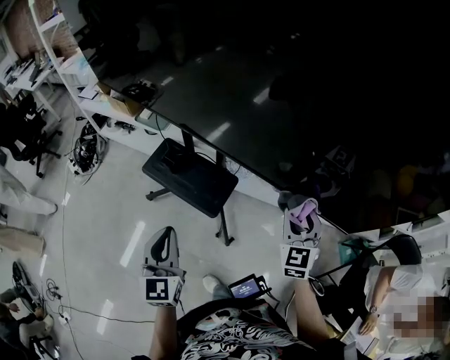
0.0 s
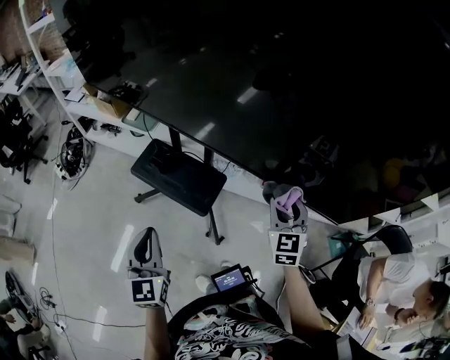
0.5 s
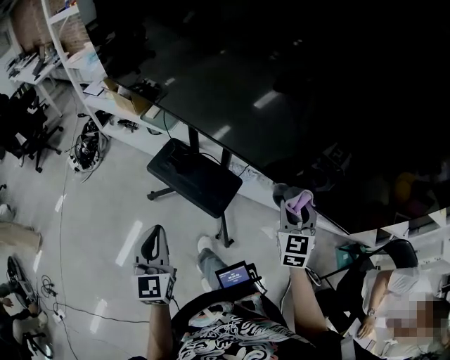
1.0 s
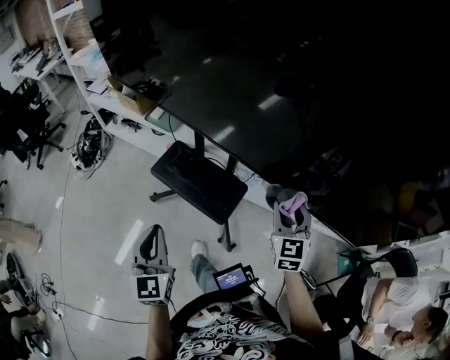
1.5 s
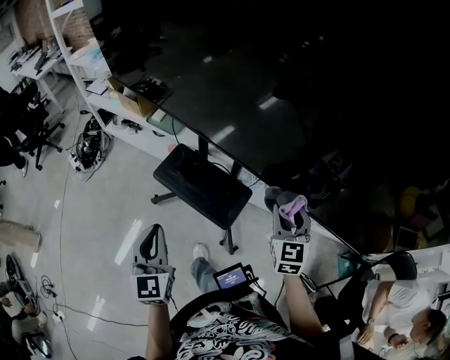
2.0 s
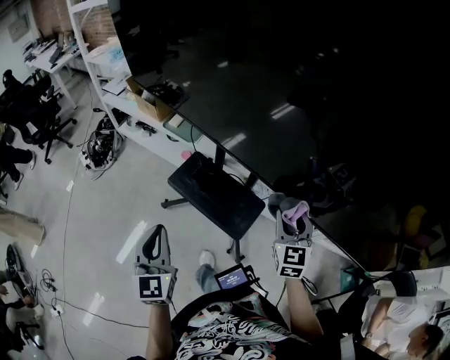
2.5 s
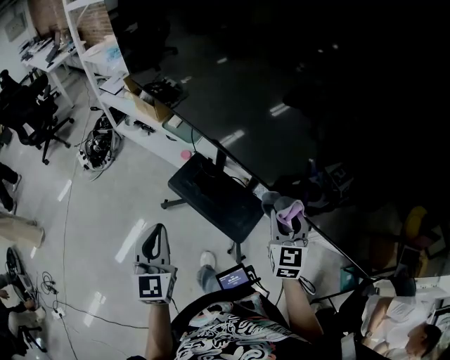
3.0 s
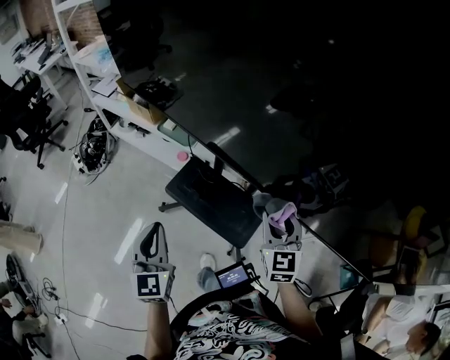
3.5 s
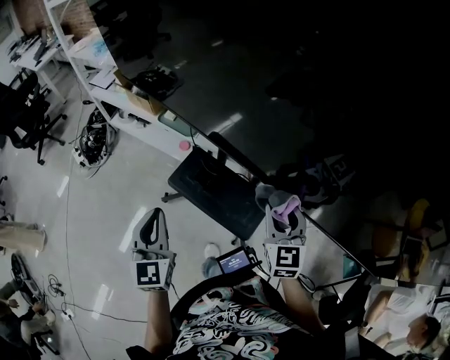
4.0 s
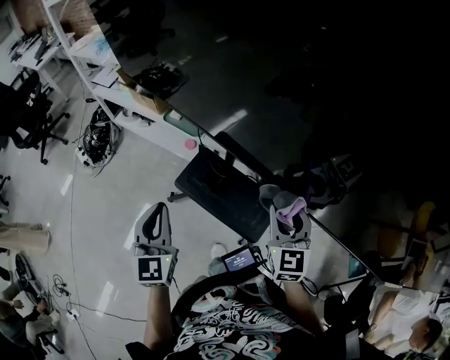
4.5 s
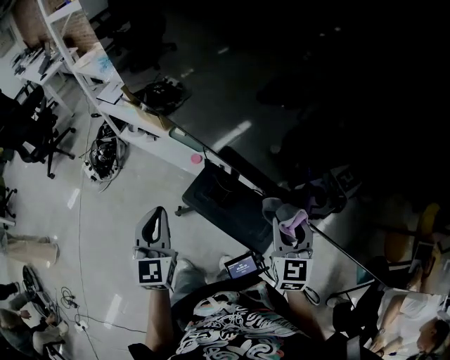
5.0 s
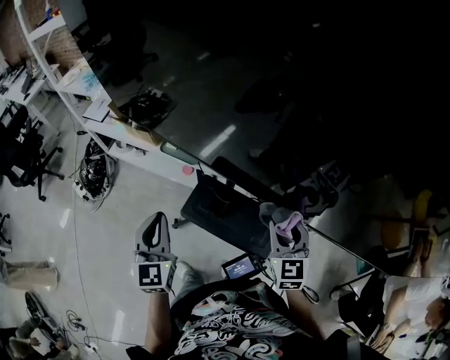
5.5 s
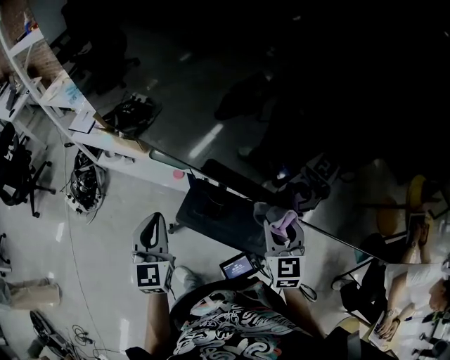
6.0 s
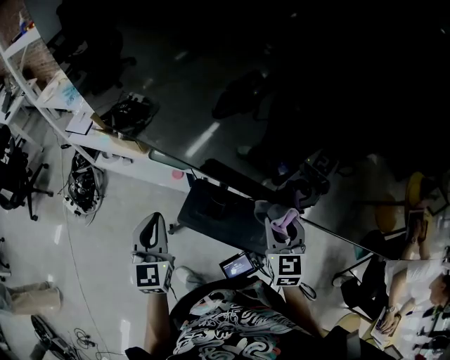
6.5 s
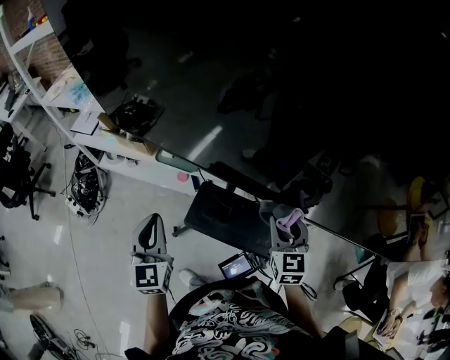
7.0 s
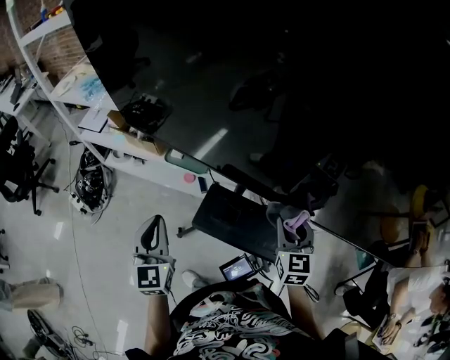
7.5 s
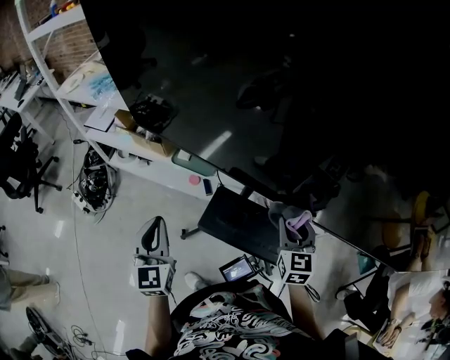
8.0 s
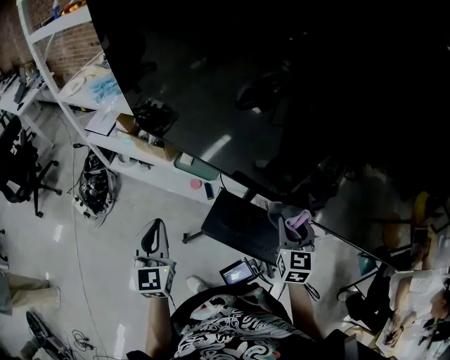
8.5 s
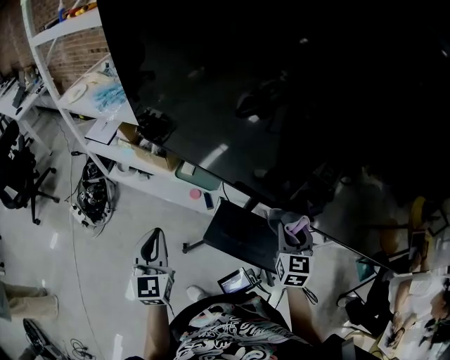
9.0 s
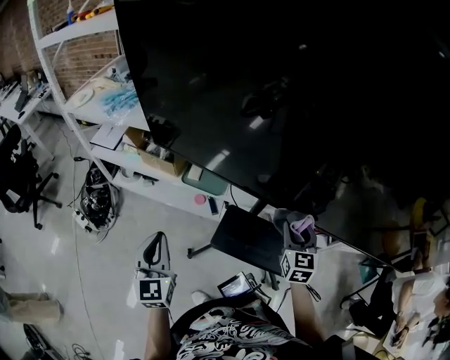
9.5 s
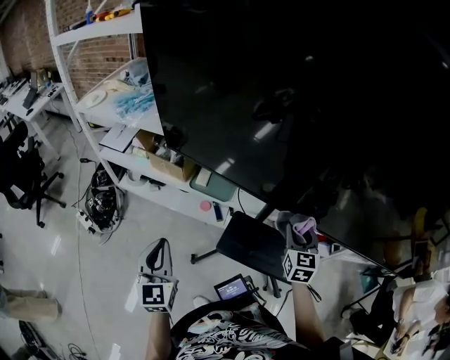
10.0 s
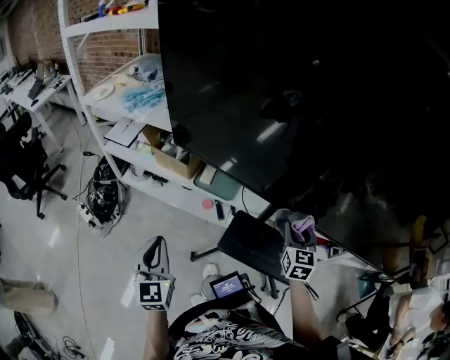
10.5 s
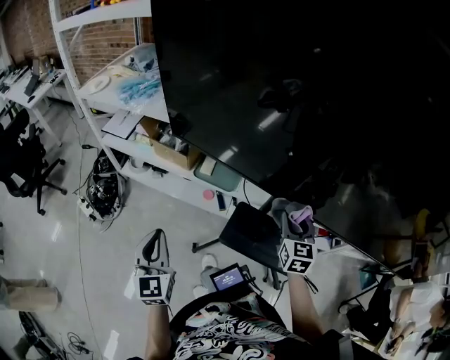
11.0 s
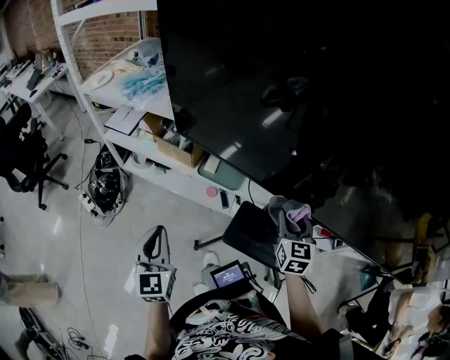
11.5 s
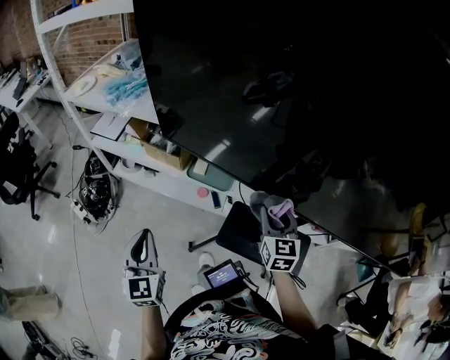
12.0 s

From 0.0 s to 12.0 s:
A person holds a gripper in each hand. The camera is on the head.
From 0.0 s to 2.0 s: The grippers both shift to the left and forward by about 15 cm.
From 2.0 s to 4.0 s: The right gripper moves to the left and forward, roughly 15 cm; the left gripper heads forward and to the left, covering about 15 cm.
From 4.0 s to 6.0 s: The left gripper is displaced forward and to the left by about 15 cm; the right gripper moves to the left, approximately 5 cm.
From 6.0 s to 8.0 s: The left gripper moves to the left, some 15 cm, while the right gripper heads to the left, covering approximately 10 cm.
From 8.0 s to 10.0 s: The left gripper moves to the left, roughly 10 cm. The right gripper moves to the left, roughly 5 cm.
From 10.0 s to 12.0 s: The right gripper shifts about 10 cm to the left and forward. The left gripper moves to the left, about 5 cm.

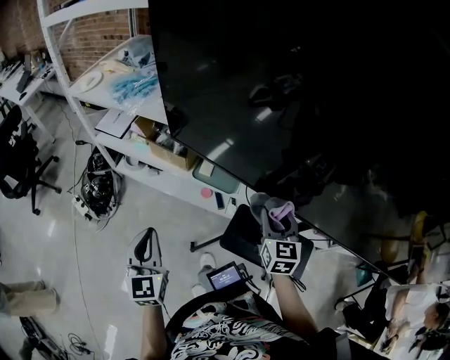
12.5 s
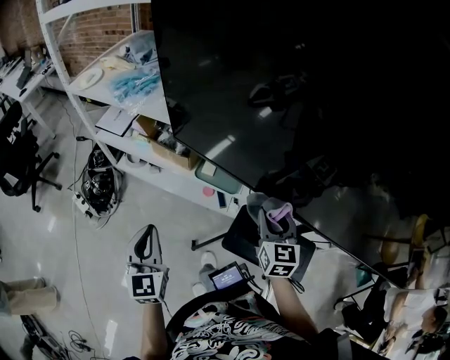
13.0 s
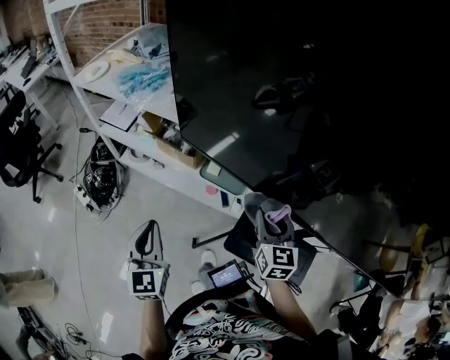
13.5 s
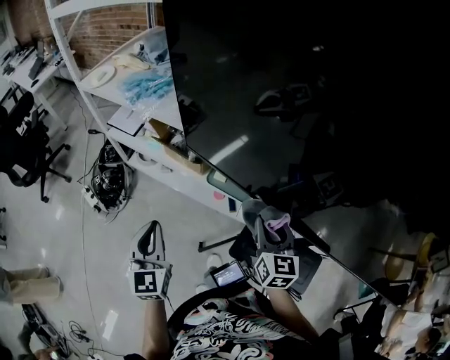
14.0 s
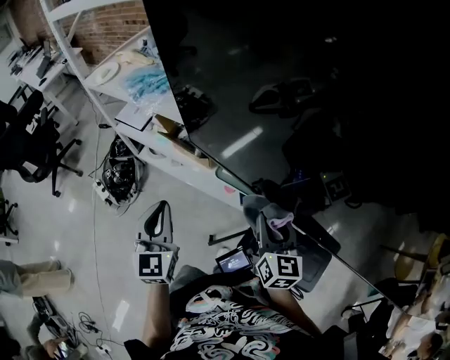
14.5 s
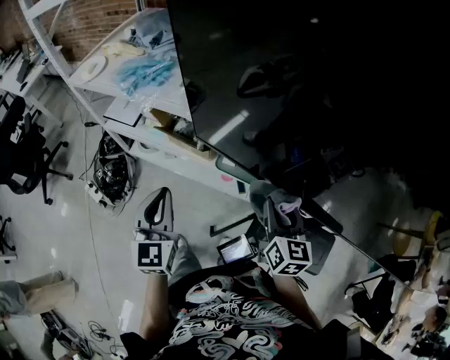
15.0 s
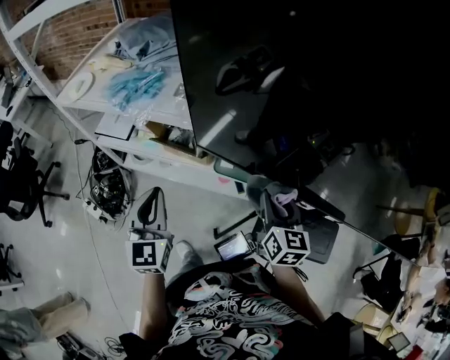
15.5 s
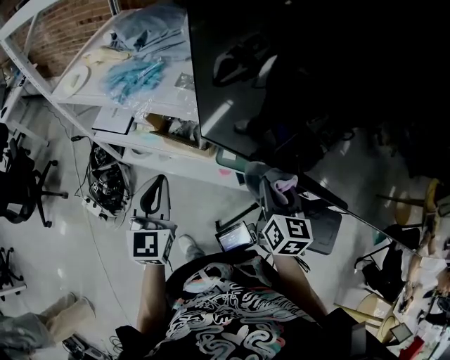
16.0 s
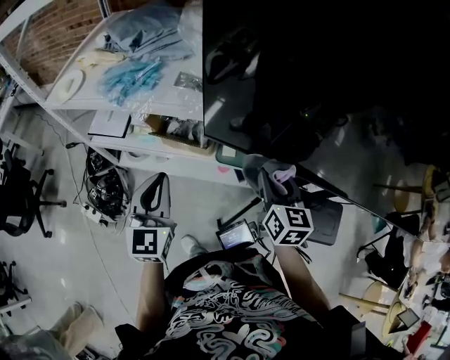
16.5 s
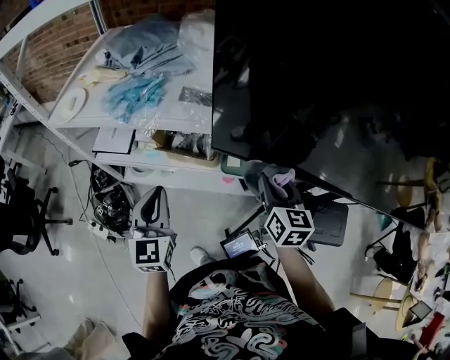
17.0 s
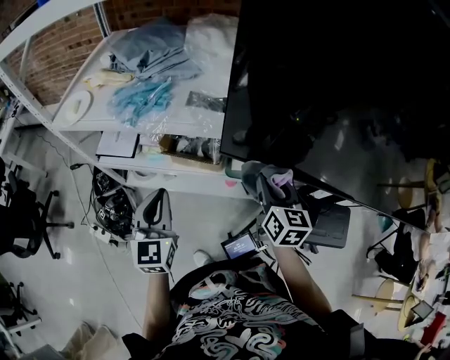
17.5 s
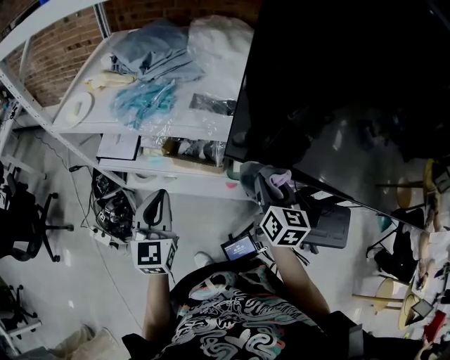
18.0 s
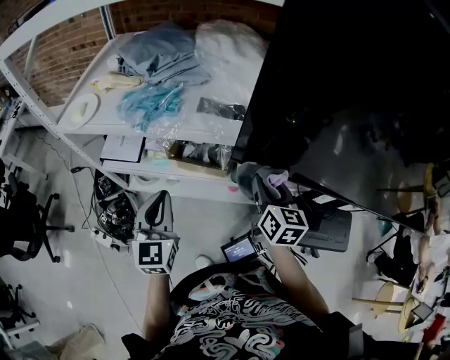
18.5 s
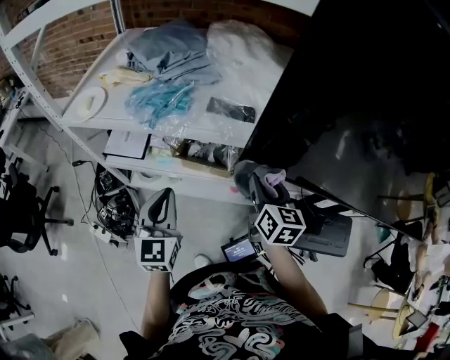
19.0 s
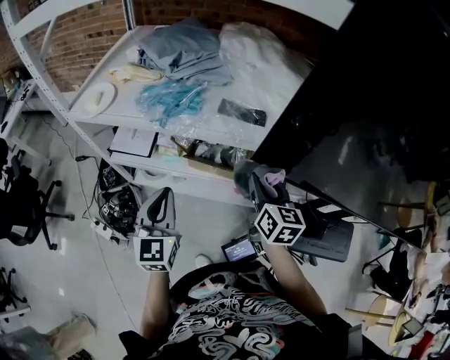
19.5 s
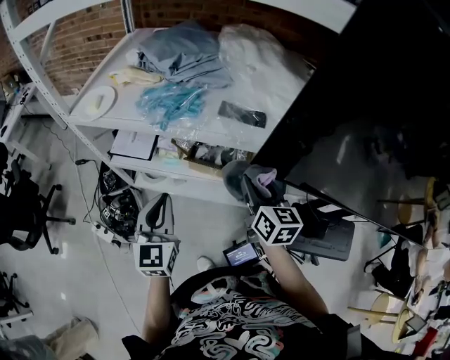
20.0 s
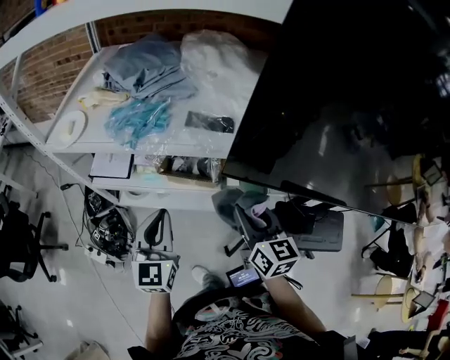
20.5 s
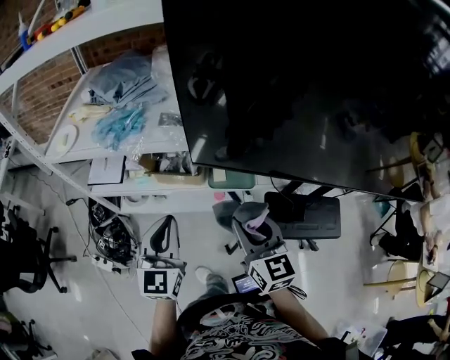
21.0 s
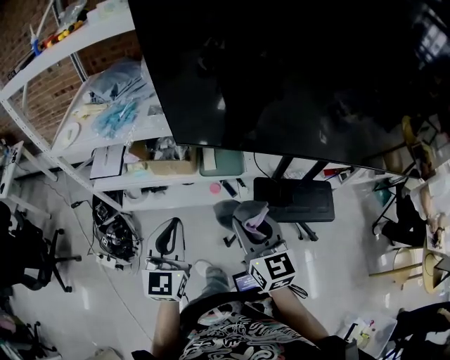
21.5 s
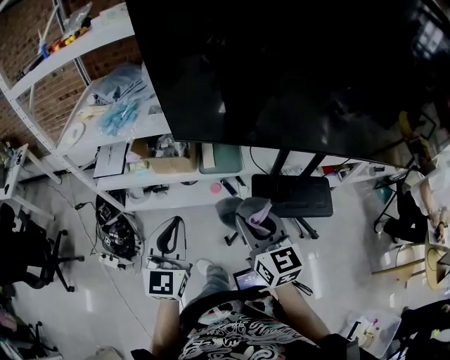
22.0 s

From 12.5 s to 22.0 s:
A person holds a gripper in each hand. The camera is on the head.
From 12.5 s to 14.5 s: The left gripper goes roughly 10 cm forward, while the right gripper moves to the left and forward, roughly 10 cm.
From 14.5 s to 16.5 s: The two grippers go about 15 cm to the left and forward. The left gripper turns by some 20 degrees.
From 16.5 s to 18.0 s: Both grippers travel together to the left, roughly 5 cm.
From 18.0 s to 20.0 s: The right gripper travels to the left by roughly 10 cm. The left gripper moves to the left, roughly 5 cm.
From 20.0 s to 22.0 s: Both grippers move backward and to the right, some 35 cm. The left gripper rotates about 20 degrees.

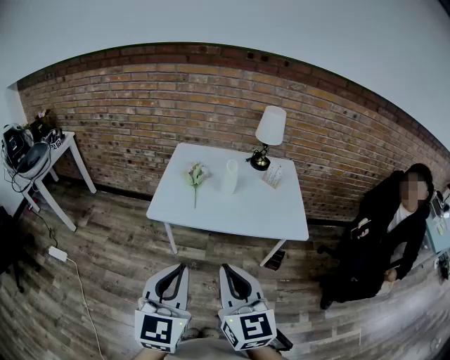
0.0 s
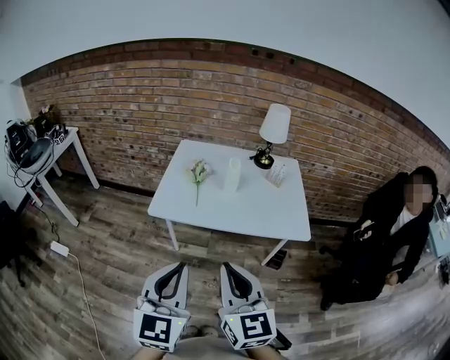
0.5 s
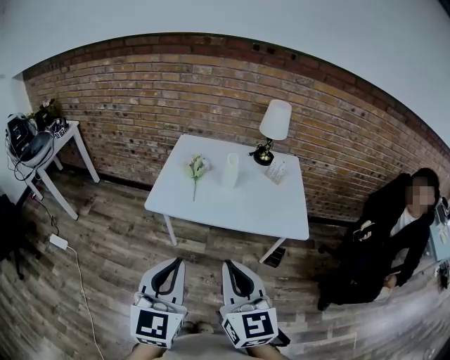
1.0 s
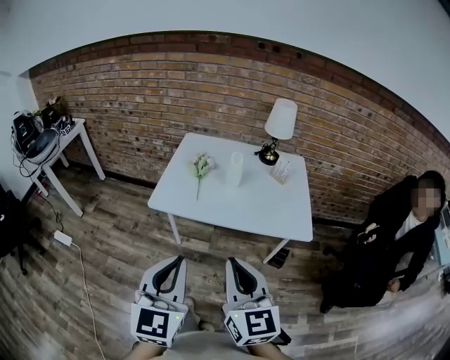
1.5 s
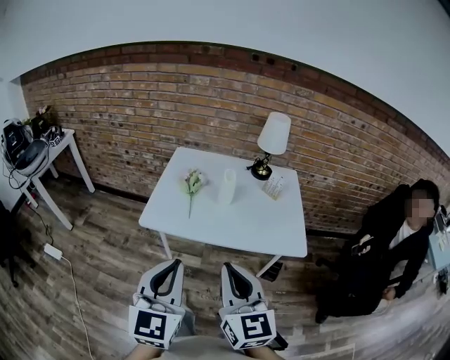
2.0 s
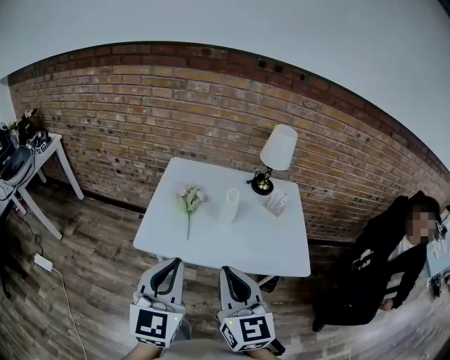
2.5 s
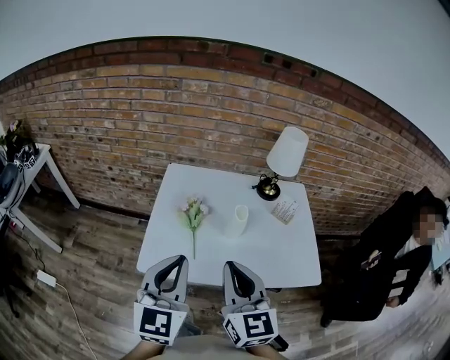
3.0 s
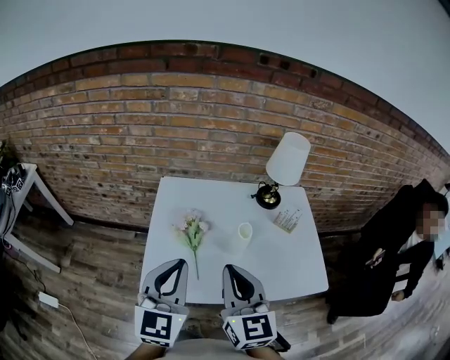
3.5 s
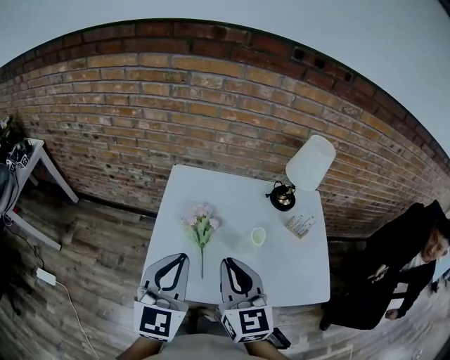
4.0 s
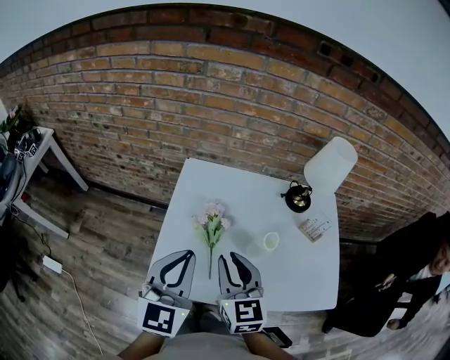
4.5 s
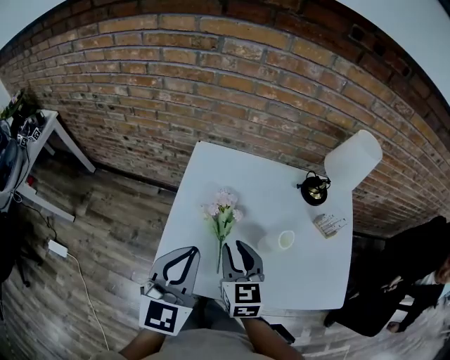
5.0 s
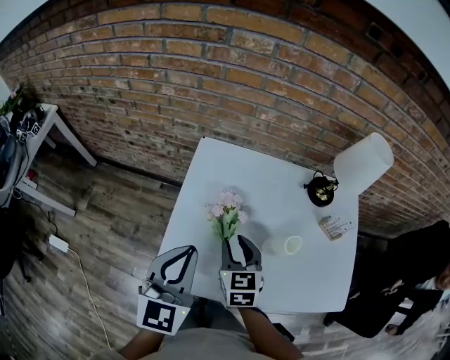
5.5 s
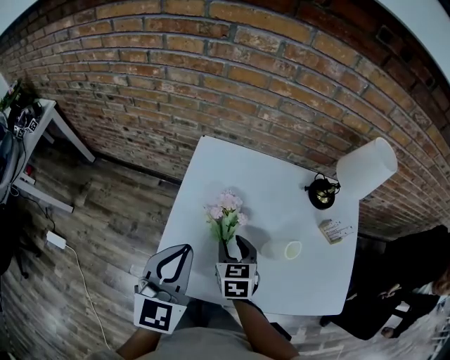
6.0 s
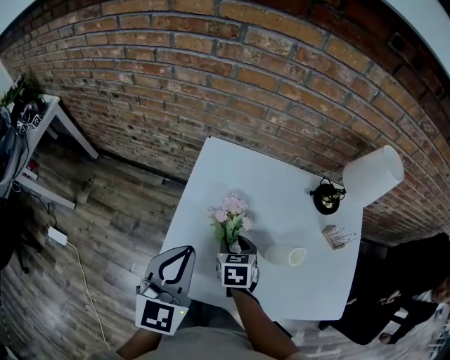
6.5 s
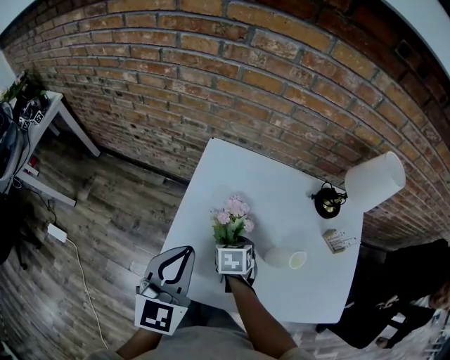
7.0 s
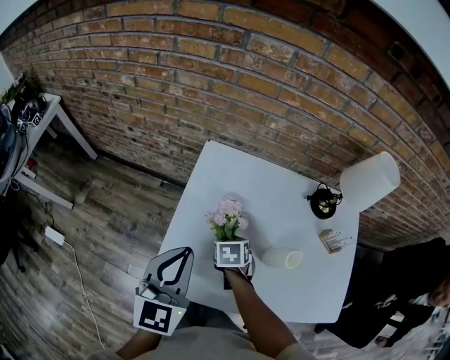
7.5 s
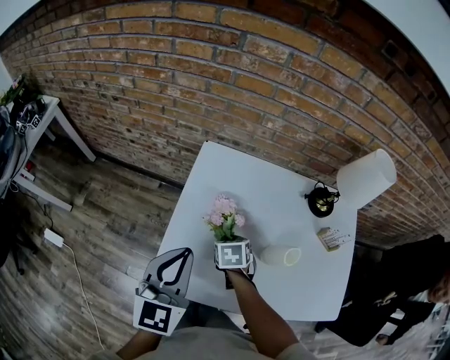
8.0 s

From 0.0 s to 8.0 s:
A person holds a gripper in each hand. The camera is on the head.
From 0.0 s to 2.0 s: The two grippers go roughly 5 cm forward.
From 2.0 s to 4.0 s: The grippers both shift forward by about 35 cm.
From 4.0 s to 6.0 s: The right gripper travels downward and forward by roughly 25 cm, angles its fingers downward, by about 30 degrees, and opens. The left gripper is displaced downward and forward by some 10 cm.
From 6.0 s to 8.0 s: The right gripper goes some 5 cm downward, and turns by some 20 degrees.
